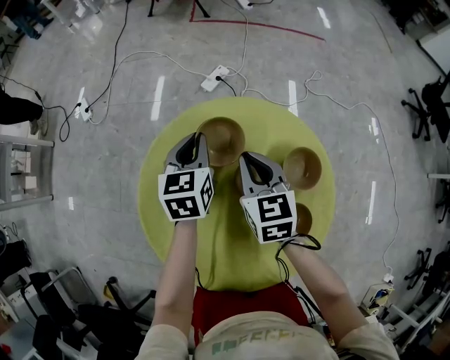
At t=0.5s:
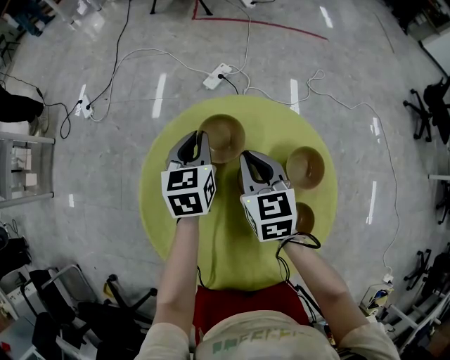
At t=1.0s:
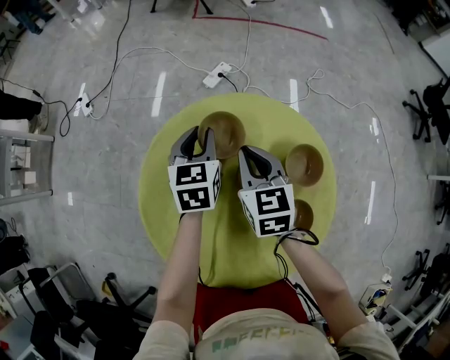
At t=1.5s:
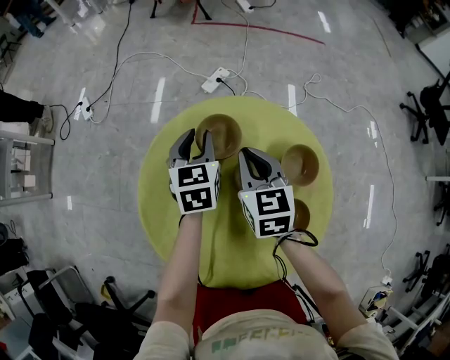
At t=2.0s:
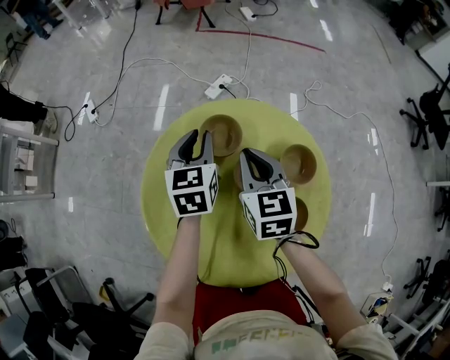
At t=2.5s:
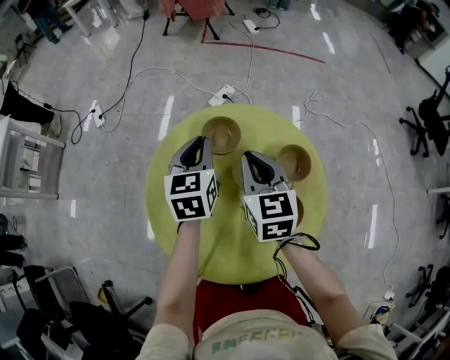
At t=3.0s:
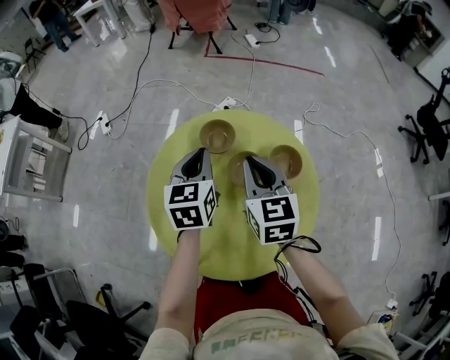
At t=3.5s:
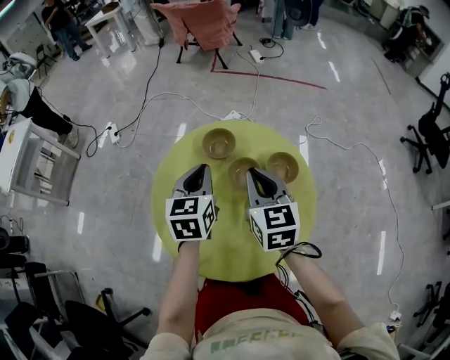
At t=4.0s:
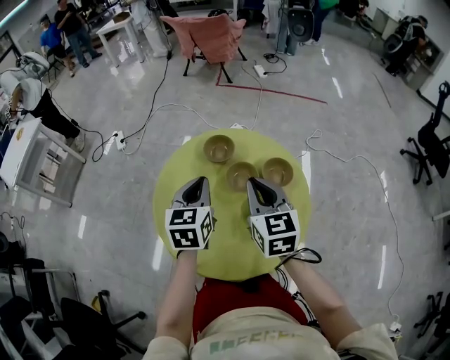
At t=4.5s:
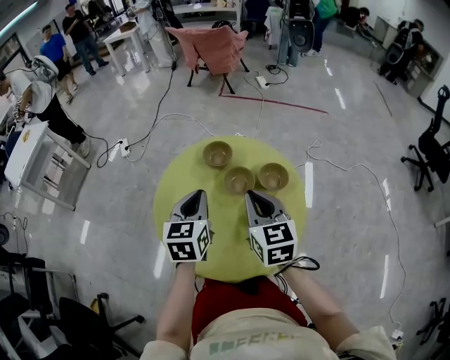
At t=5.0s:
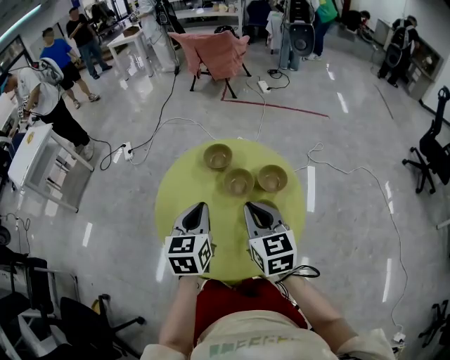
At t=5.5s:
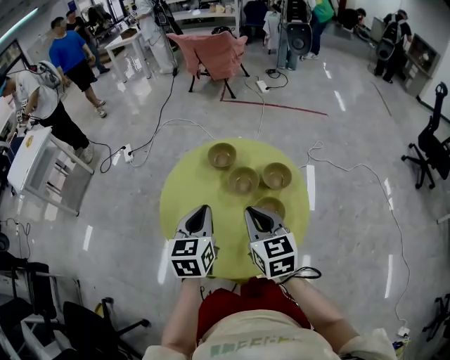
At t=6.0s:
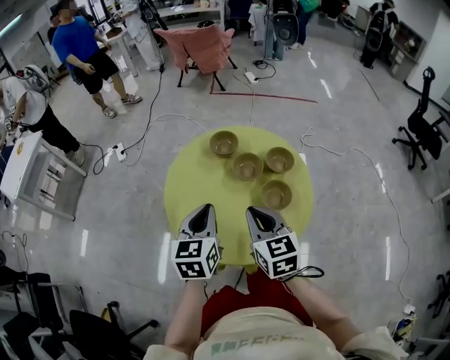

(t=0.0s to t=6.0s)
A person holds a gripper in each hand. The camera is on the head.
t=0.0s - t=2.0s: The grippers stay close to where they were, moving slightly.
t=2.0s - t=4.0s: The grippers both shift backward and upward by approximately 20 cm.
t=4.0s - t=6.0s: The right gripper travels backward and to the left by about 15 cm; the left gripper goes roughly 15 cm backward.

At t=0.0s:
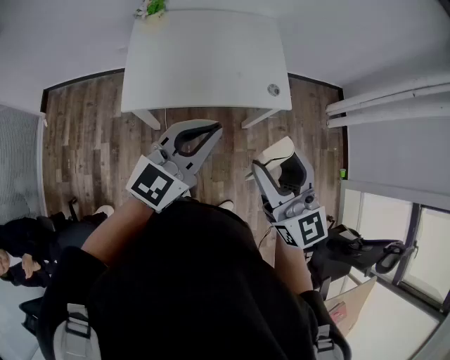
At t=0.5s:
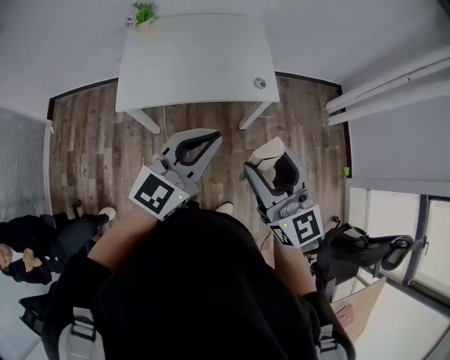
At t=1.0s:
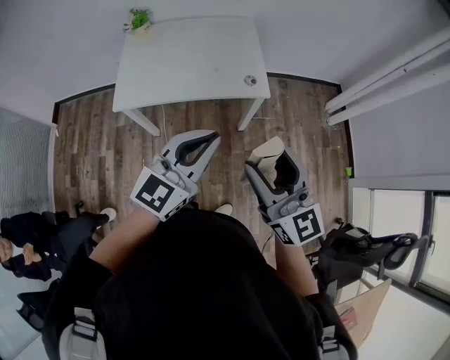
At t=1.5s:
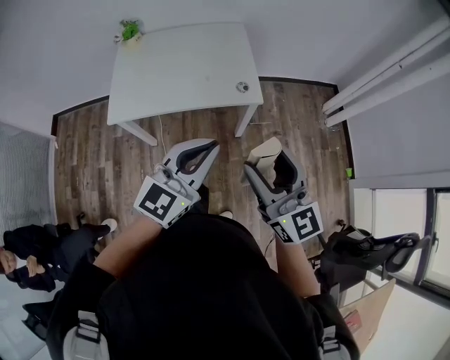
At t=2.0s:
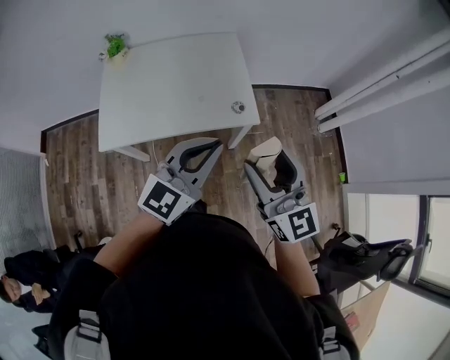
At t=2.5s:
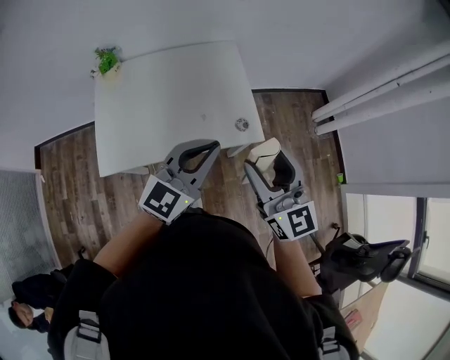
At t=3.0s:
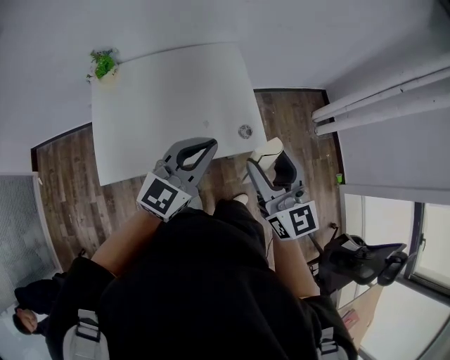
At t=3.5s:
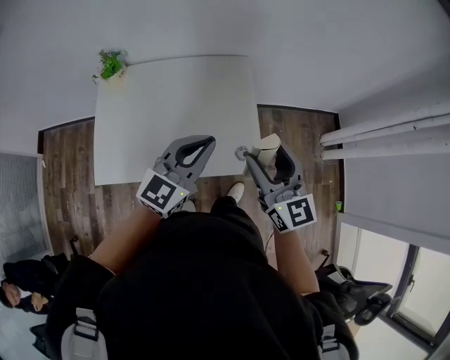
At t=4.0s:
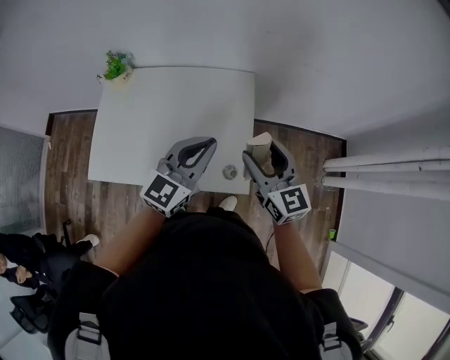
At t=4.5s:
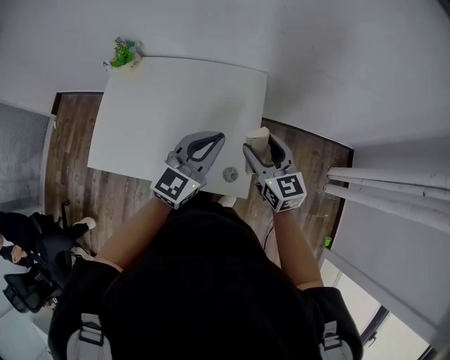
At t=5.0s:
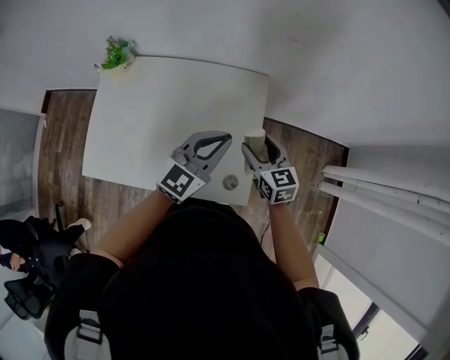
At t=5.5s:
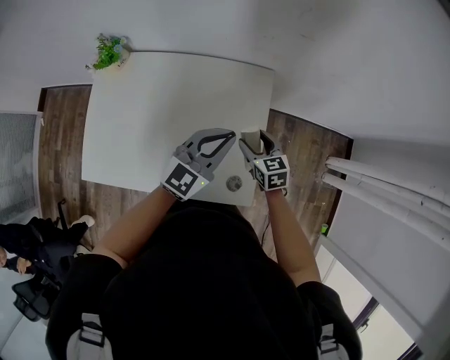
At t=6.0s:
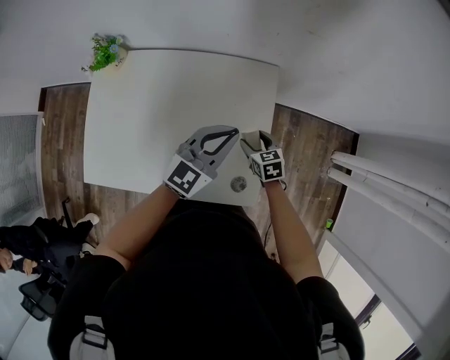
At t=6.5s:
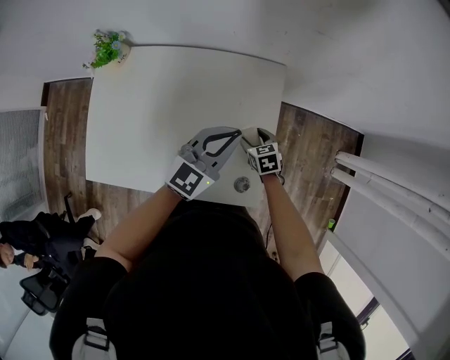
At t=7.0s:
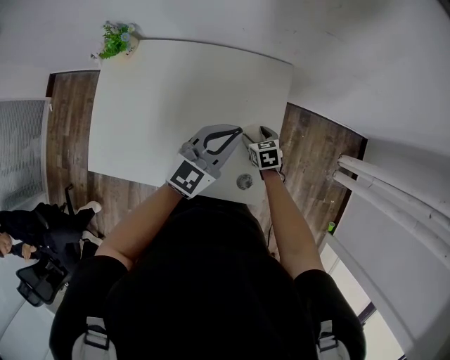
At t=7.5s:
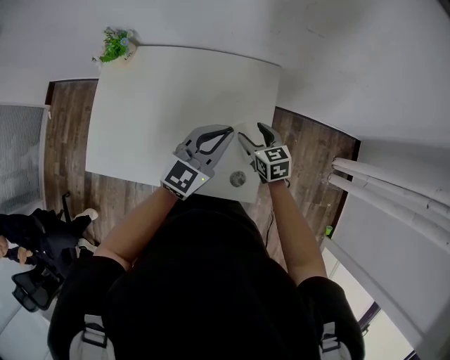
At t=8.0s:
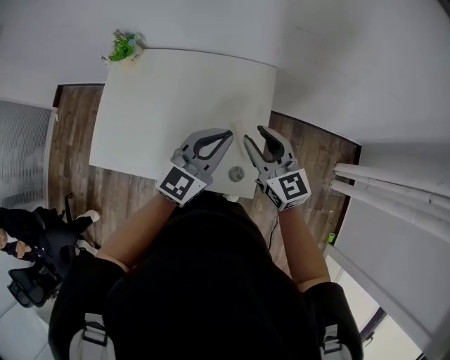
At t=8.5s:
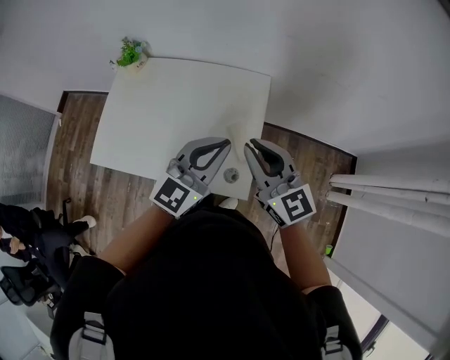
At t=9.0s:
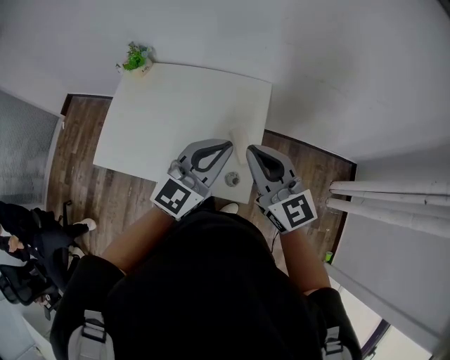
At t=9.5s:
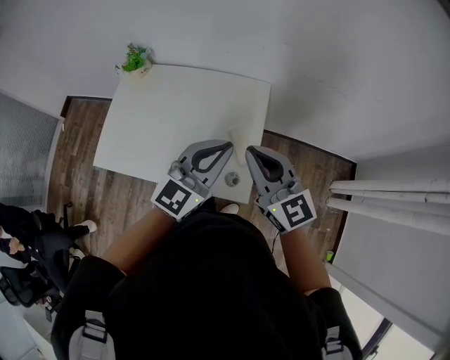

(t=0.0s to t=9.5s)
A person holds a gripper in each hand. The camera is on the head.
t=0.0s - t=2.0s: The right gripper goes roughly 15 cm to the right and forward. Meanwhile the left gripper shifts some 15 cm to the right.
t=2.0s - t=4.0s: Both grippers travel together forward, roughly 35 cm.
t=4.0s - t=5.5s: The right gripper is displaced downward and forward by approximately 25 cm, and tilts its fingers about 30 degrees downward. Meanwhile the left gripper is displaced forward and downward by about 15 cm.
t=5.5s - t=7.5s: The right gripper travels downward and back again, roughly 15 cm each way.
t=7.5s - t=9.5s: The right gripper goes approximately 35 cm upward and backward, points its fingers roughly 30 degrees further upward, and closes up. The left gripper moves backward and upward, approximately 20 cm.

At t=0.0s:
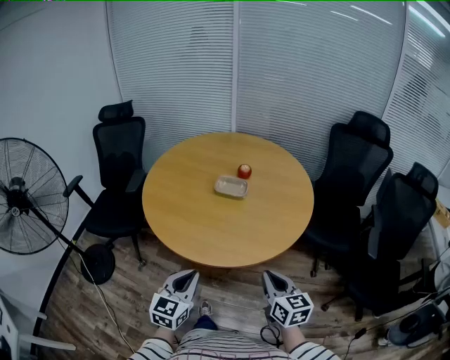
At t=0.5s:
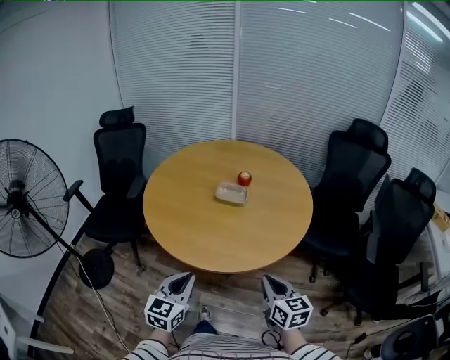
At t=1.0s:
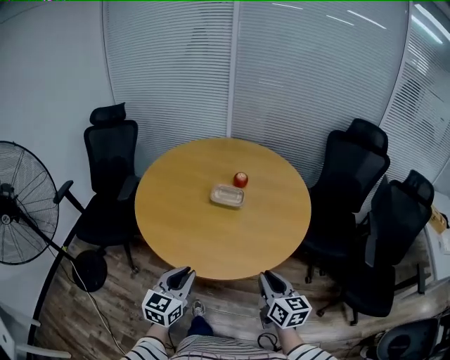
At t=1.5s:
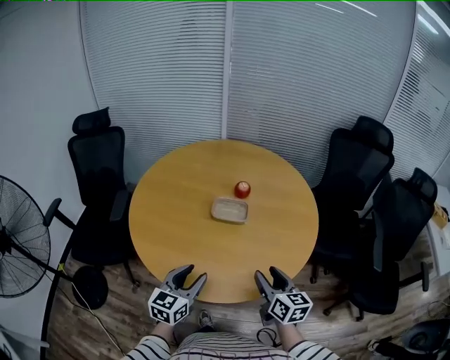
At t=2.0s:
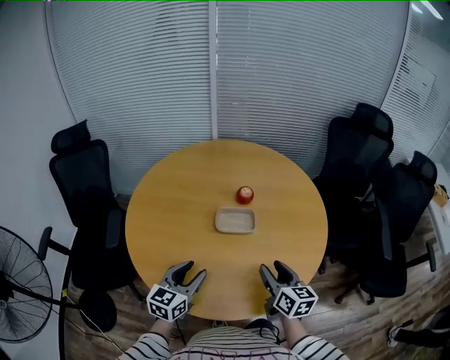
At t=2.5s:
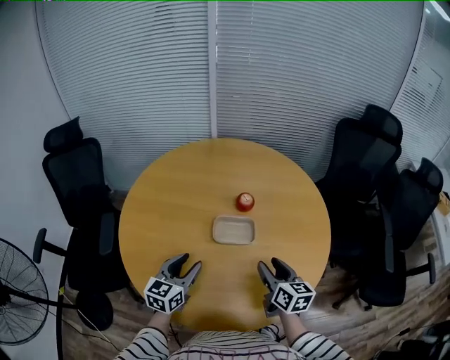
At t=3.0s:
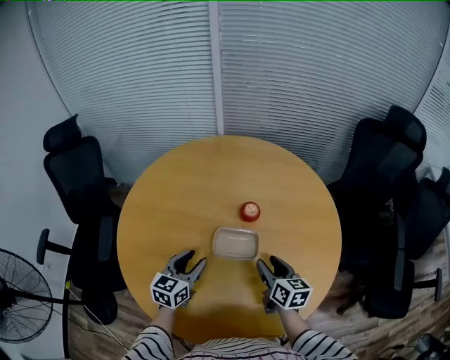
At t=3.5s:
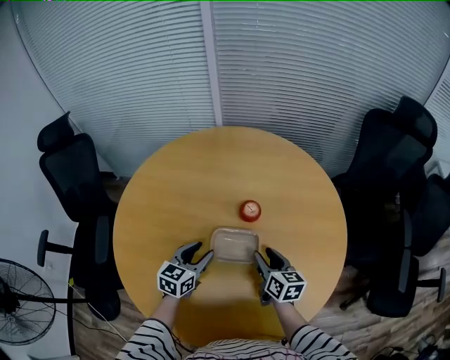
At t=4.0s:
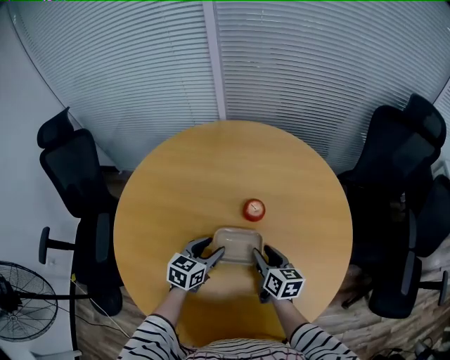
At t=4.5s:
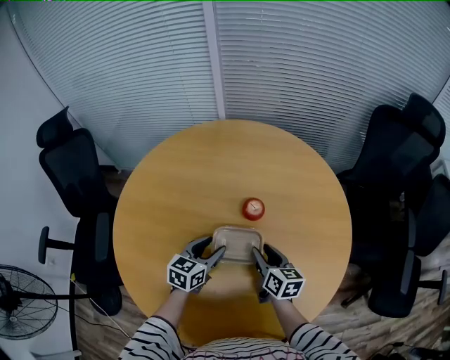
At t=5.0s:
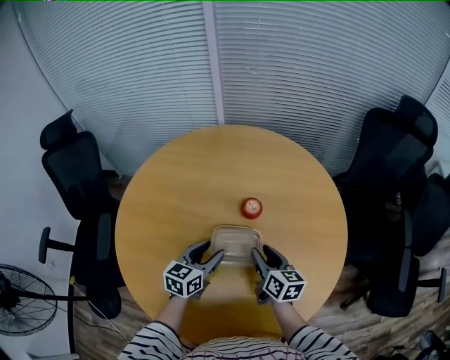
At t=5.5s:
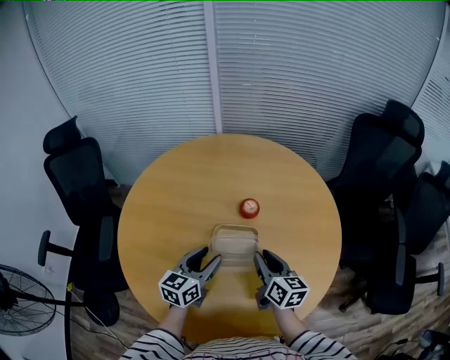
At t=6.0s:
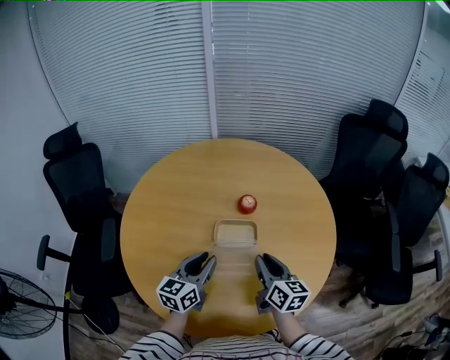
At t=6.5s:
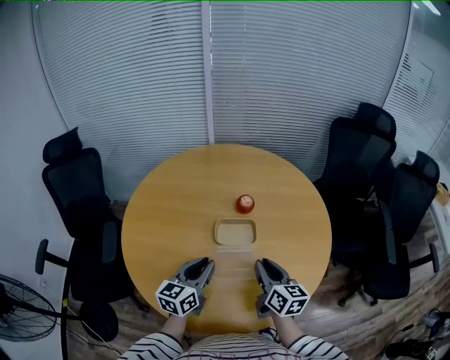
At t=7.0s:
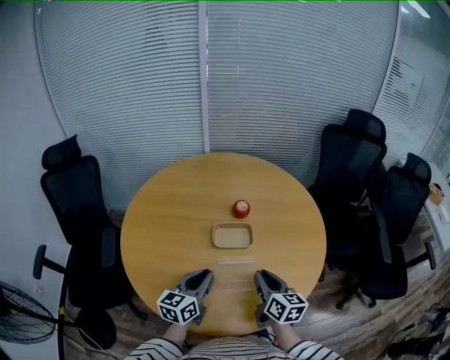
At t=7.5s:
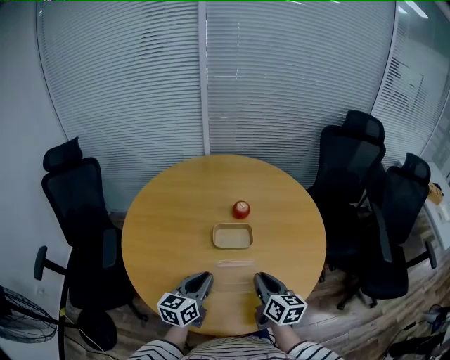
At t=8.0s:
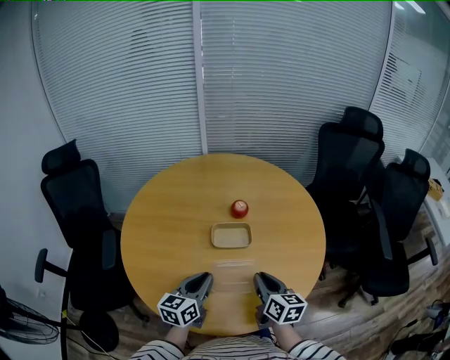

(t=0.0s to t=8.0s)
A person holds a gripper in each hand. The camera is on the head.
t=0.0s - t=2.0s: The two grippers go approximately 30 cm forward and to the left. The right gripper rotates approximately 20 degrees, and opens. The left gripper opens its fingers.
t=2.0s - t=4.0s: Both grippers travel together forward and downward, about 30 cm.
t=4.0s - t=6.0s: Both grippers travel together backward and upward, roughly 20 cm. The left gripper changes its angle by approximately 20 degrees.
t=6.0s - t=8.0s: Both grippers travel together backward, about 10 cm.

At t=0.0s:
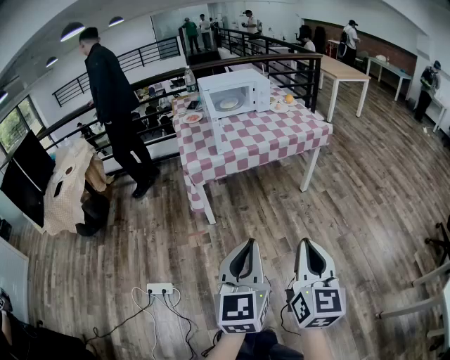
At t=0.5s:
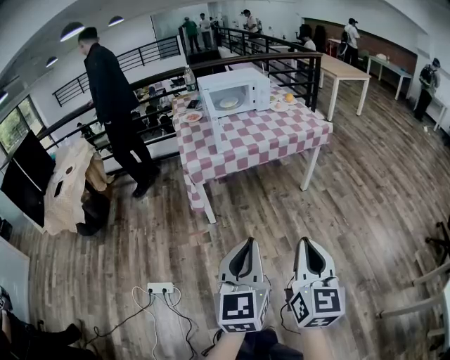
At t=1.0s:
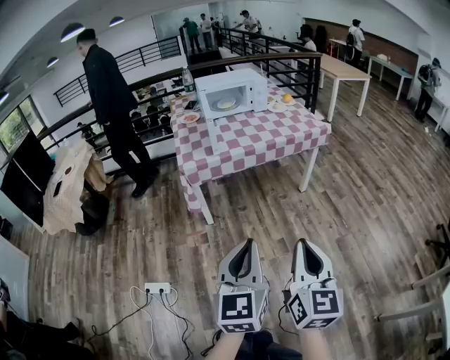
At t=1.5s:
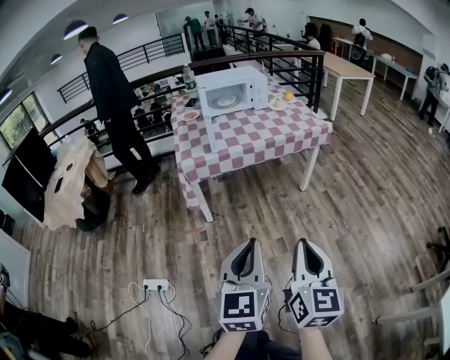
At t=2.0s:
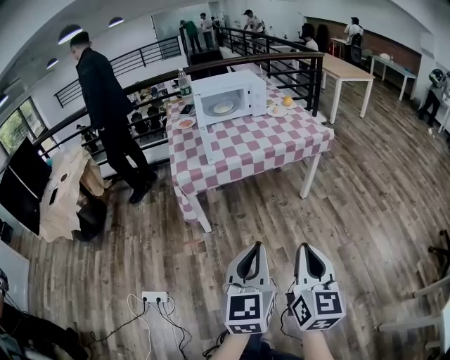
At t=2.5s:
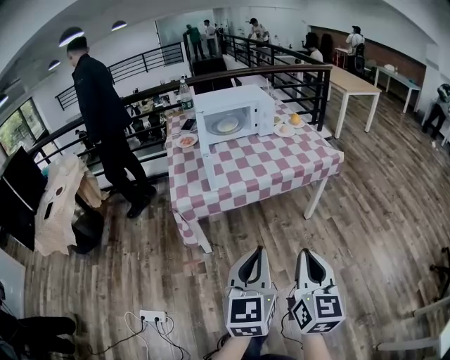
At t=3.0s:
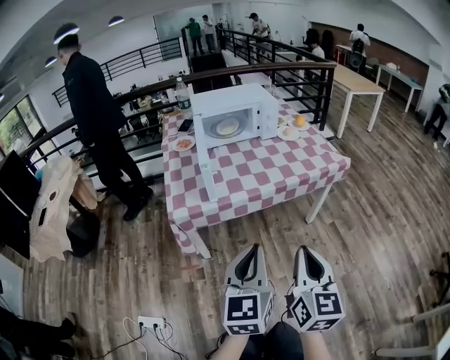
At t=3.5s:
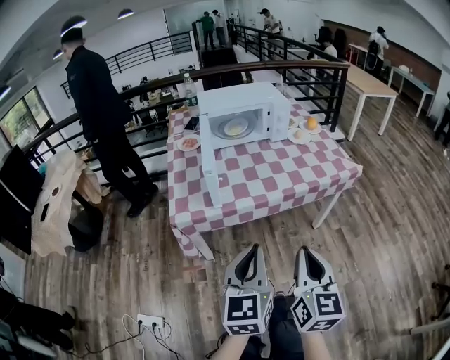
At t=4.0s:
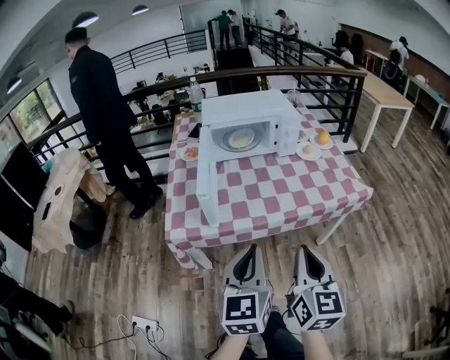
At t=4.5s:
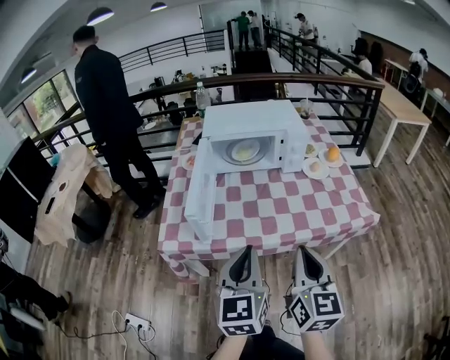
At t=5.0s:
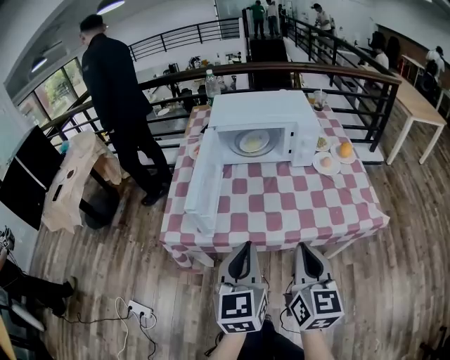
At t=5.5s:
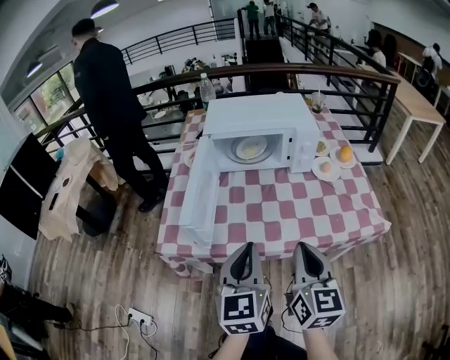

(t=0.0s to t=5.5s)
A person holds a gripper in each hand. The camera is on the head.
t=0.0s - t=2.0s: Both grippers travel together forward and to the right, roughly 10 cm.
t=2.0s - t=3.5s: The grippers both shift forward by about 25 cm.
t=3.5s - t=5.5s: Both grippers move forward, some 25 cm.
